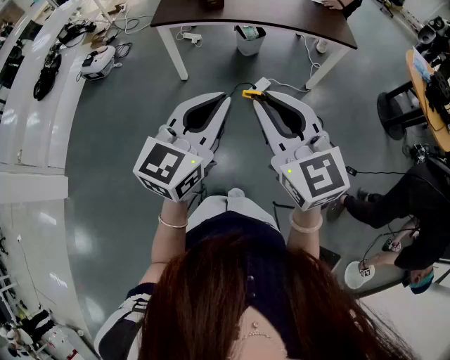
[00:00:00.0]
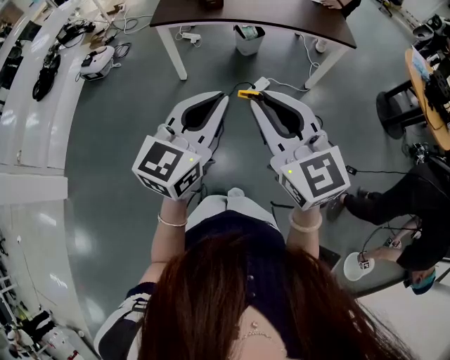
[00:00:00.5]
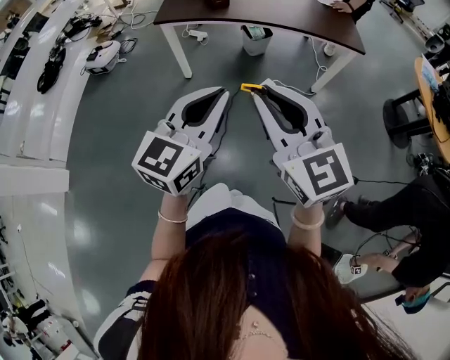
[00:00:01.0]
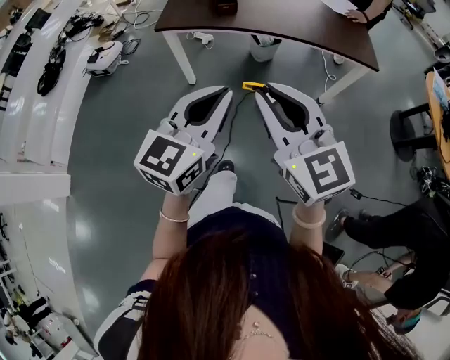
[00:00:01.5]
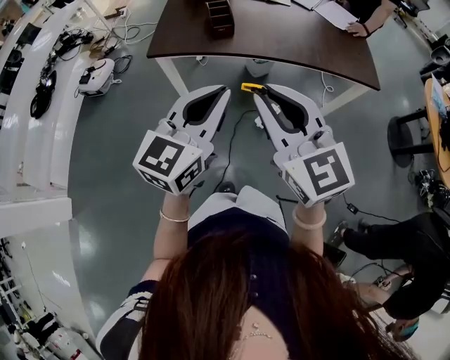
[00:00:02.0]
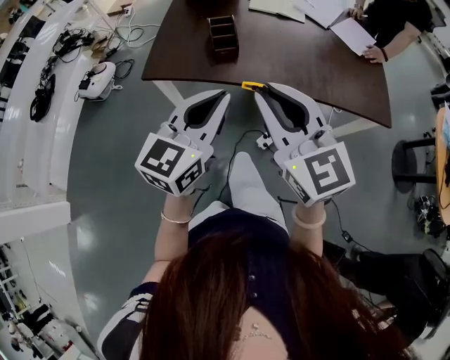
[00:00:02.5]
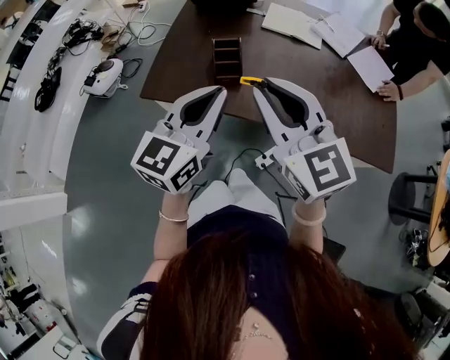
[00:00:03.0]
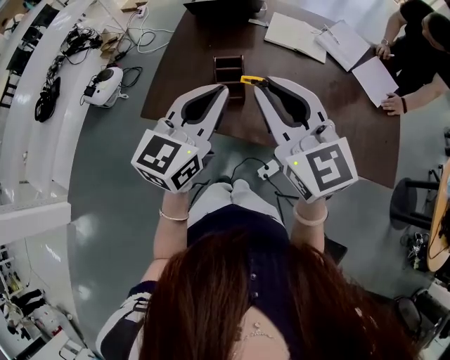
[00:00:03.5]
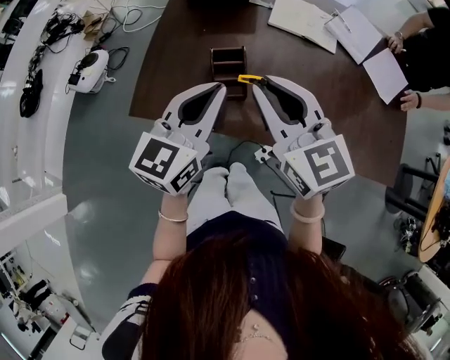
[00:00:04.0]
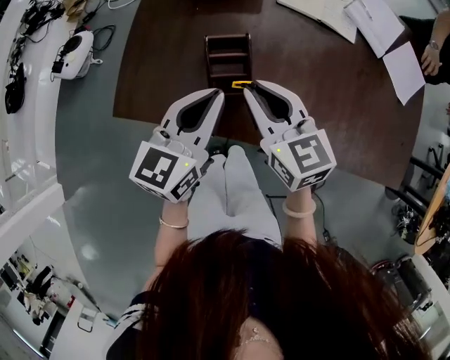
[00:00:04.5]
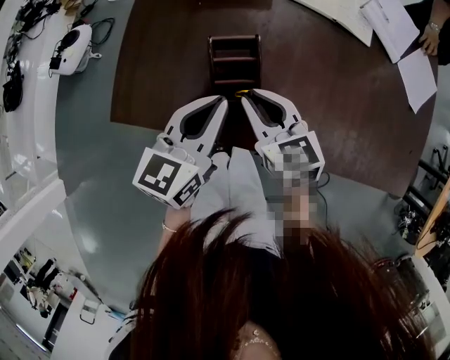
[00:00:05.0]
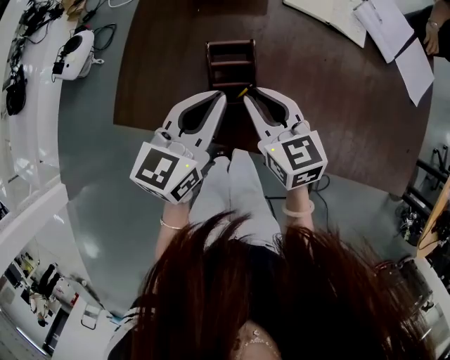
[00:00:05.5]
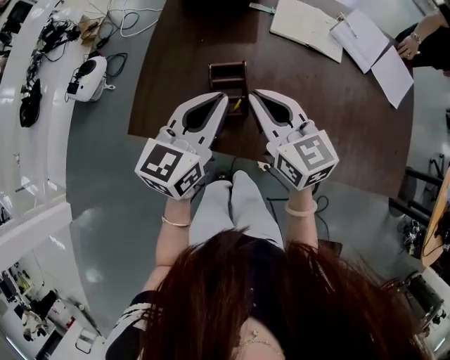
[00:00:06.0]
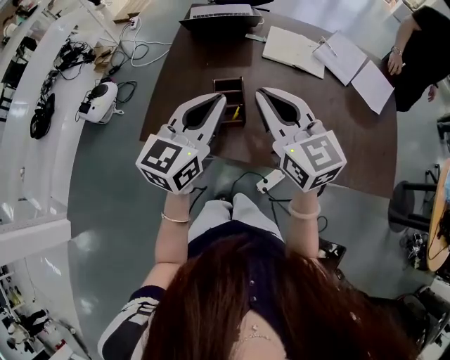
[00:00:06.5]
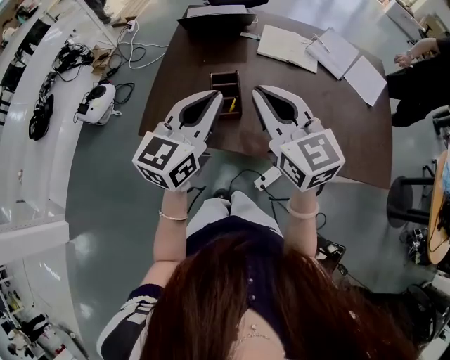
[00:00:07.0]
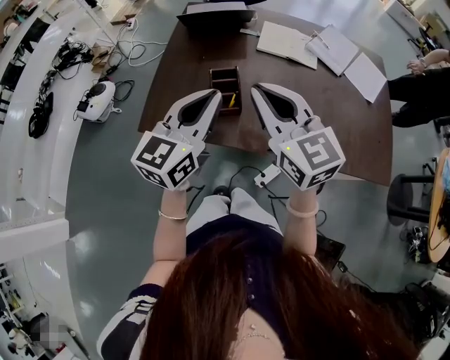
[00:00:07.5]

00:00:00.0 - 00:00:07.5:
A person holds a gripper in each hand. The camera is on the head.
00:00:00.0 - 00:00:02.0: The grippers both shift forward by some 30 cm.
00:00:02.0 - 00:00:04.0: Both grippers are carried forward, roughly 50 cm.
00:00:04.0 - 00:00:05.5: The right gripper heads downward, covering some 20 cm, and turns by roughly 20 degrees. The left gripper is displaced downward and forward by approximately 15 cm.
00:00:05.5 - 00:00:07.5: Both grippers move upward and backward, some 25 cm. The right gripper changes its angle by approximately 30 degrees.

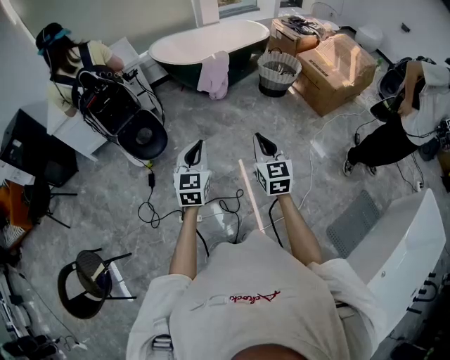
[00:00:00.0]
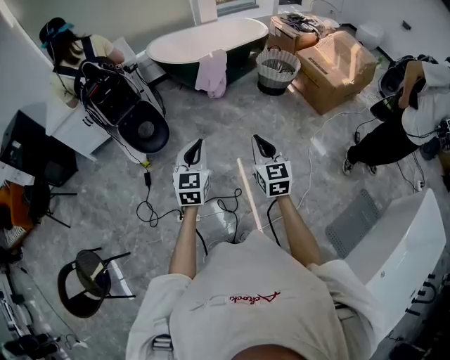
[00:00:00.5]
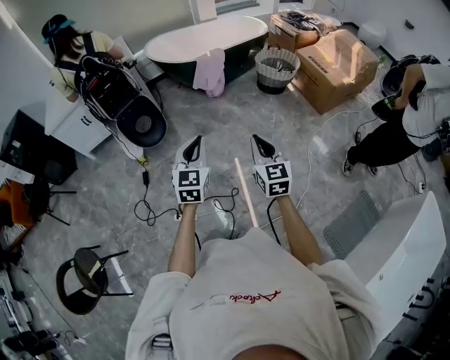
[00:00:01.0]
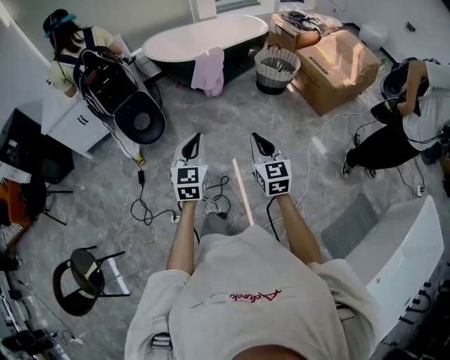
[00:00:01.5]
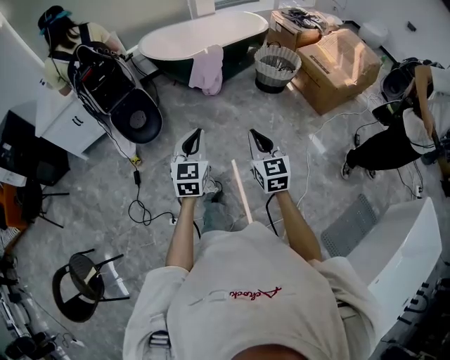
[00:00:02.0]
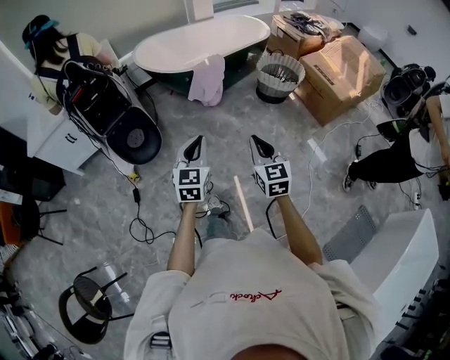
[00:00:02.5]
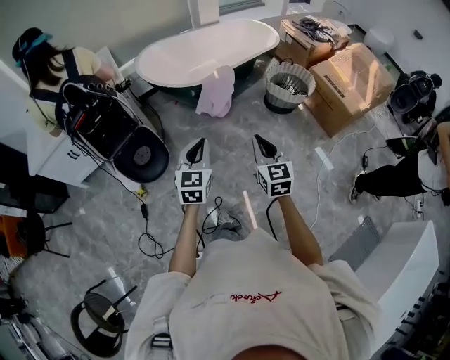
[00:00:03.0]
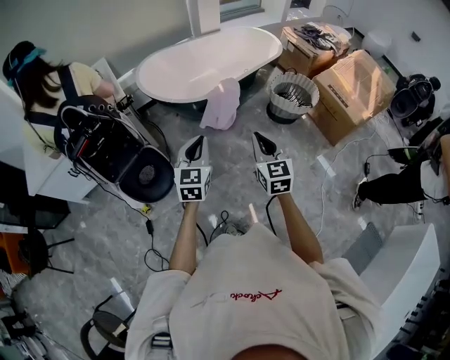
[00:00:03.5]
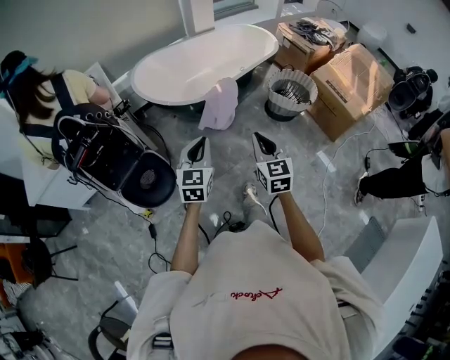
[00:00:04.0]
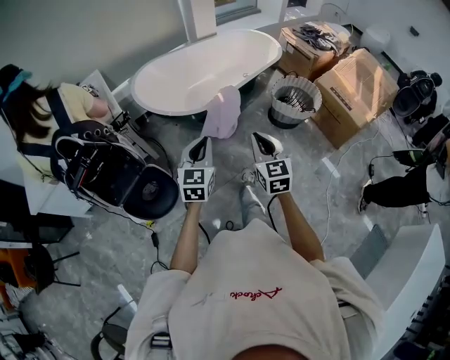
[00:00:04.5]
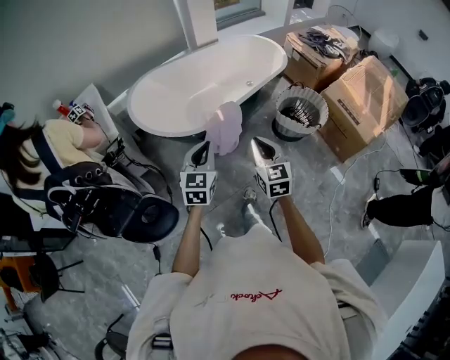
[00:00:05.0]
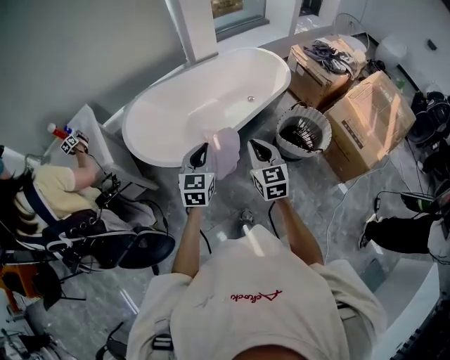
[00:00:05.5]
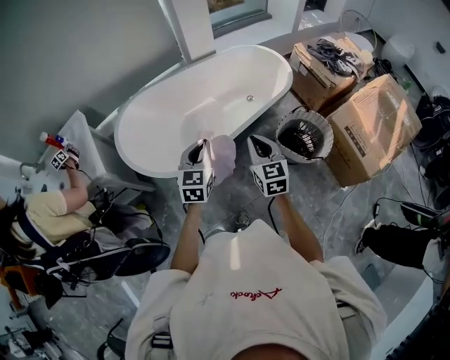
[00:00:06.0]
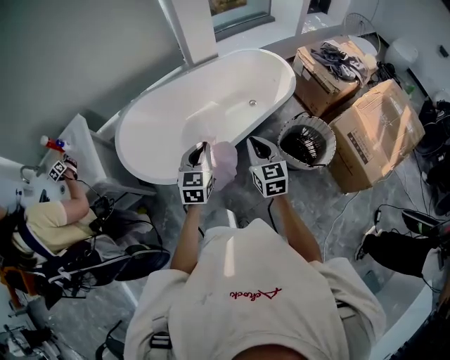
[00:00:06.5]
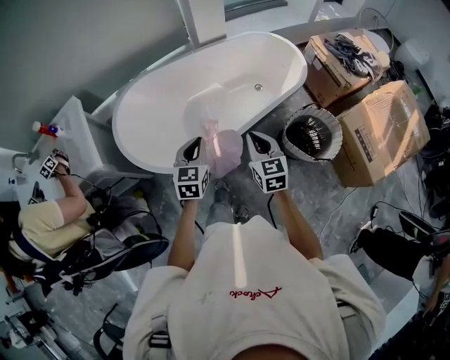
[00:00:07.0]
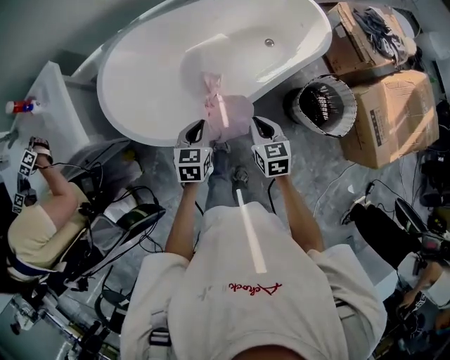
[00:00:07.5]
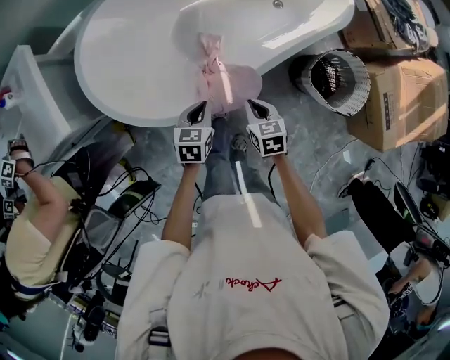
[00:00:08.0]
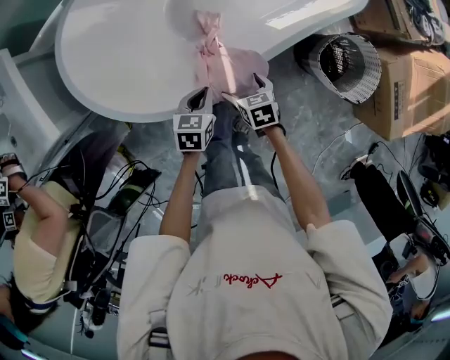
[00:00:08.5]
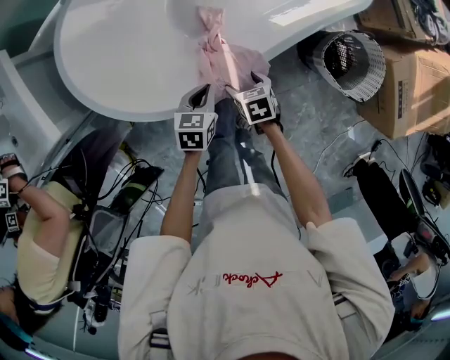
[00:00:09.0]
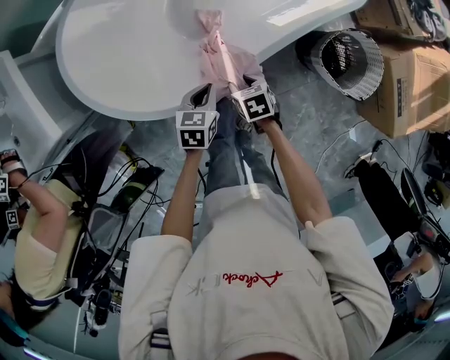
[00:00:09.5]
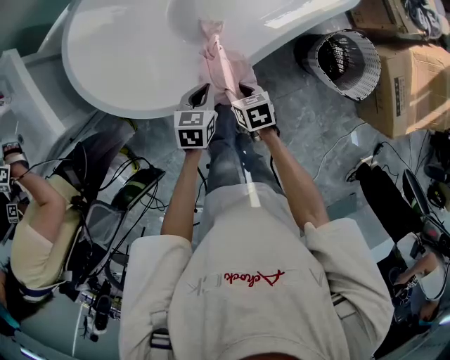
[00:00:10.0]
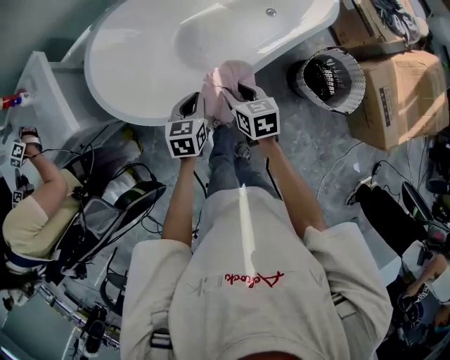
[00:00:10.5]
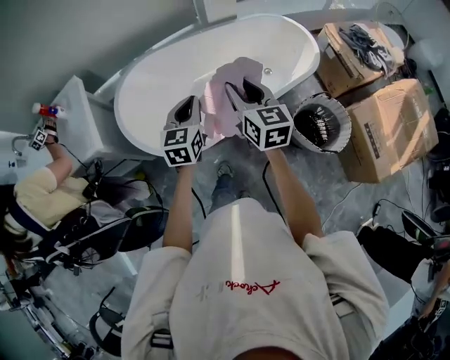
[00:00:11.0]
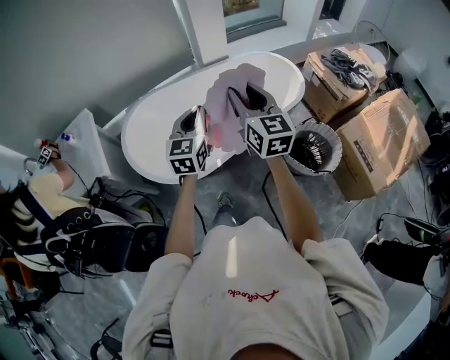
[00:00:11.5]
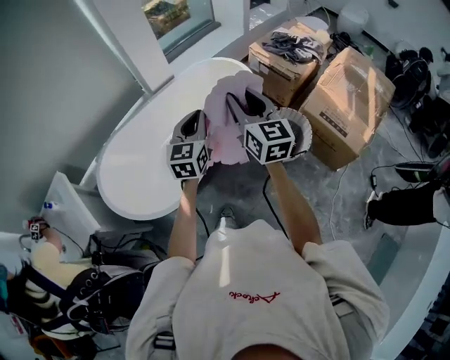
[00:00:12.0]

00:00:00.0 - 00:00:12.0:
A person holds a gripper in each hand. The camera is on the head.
00:00:00.0 - 00:00:02.0: The left gripper heads forward and to the right, covering roughly 15 cm; the right gripper goes some 10 cm forward.
00:00:02.0 - 00:00:04.0: The pair of grippers is taken forward, some 40 cm.
00:00:04.0 - 00:00:06.0: Both grippers are carried forward, some 50 cm.
00:00:06.0 - 00:00:08.0: The two grippers go some 30 cm downward. The left gripper swivels about 40 degrees, while the right gripper tips its fingers downward by approximately 30 degrees.
00:00:08.0 - 00:00:10.0: The right gripper moves downward, some 5 cm, and opens, then closes again.
00:00:10.0 - 00:00:12.0: Both grippers travel together upward, approximately 50 cm. The left gripper angles its fingers upward, by some 40 degrees; the right gripper tips its fingers upward by some 60 degrees.

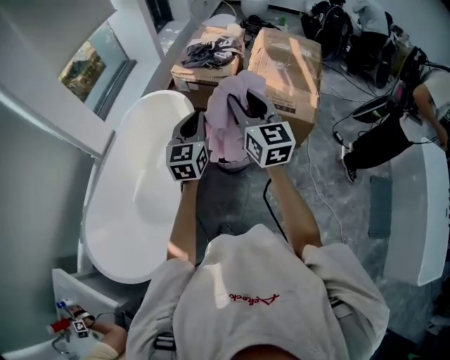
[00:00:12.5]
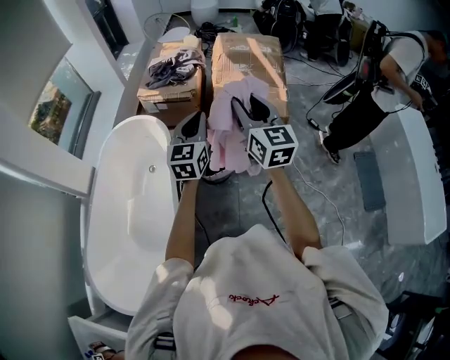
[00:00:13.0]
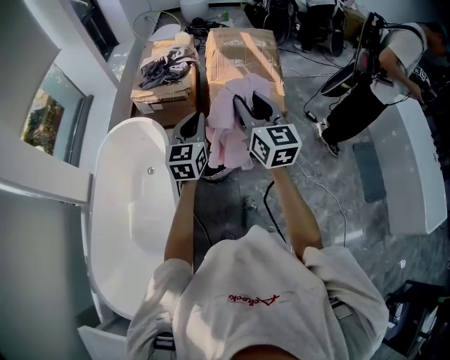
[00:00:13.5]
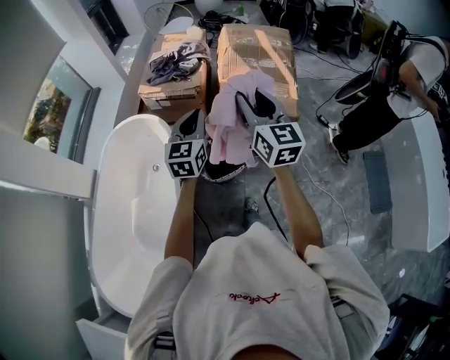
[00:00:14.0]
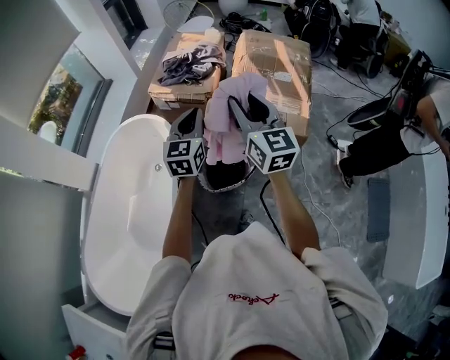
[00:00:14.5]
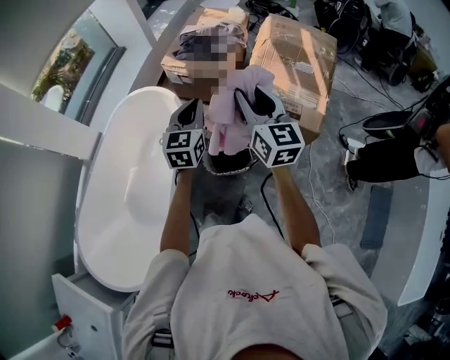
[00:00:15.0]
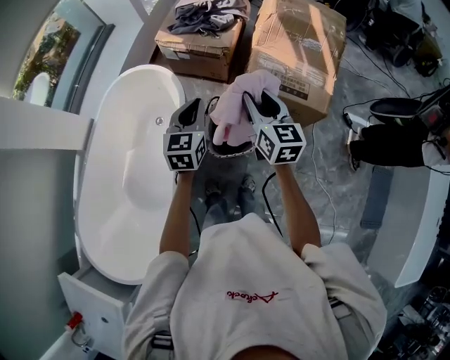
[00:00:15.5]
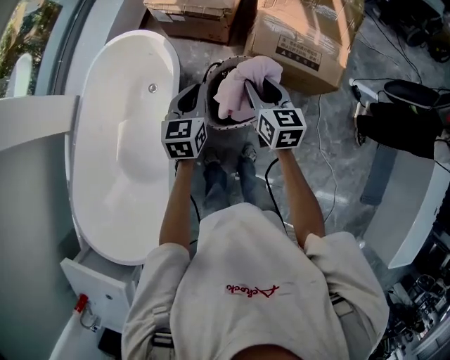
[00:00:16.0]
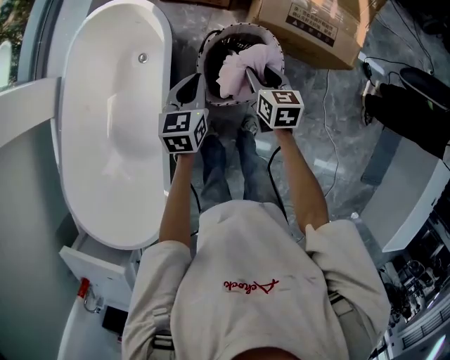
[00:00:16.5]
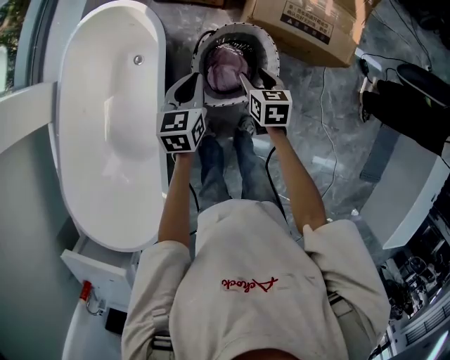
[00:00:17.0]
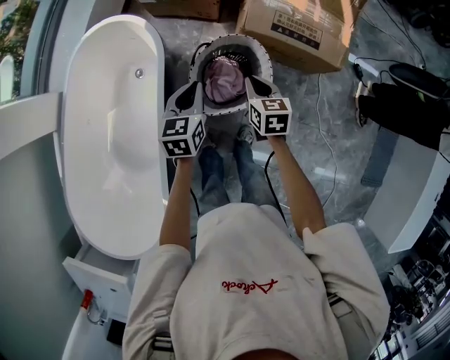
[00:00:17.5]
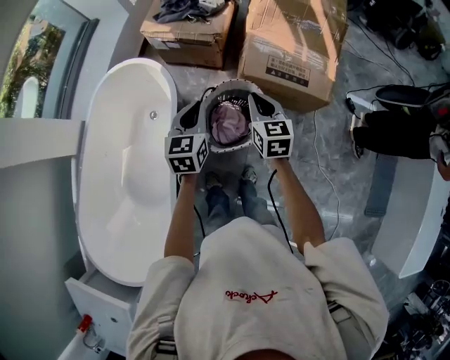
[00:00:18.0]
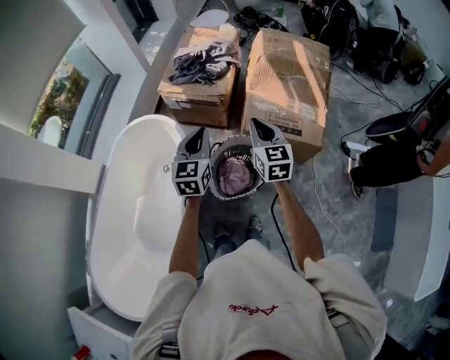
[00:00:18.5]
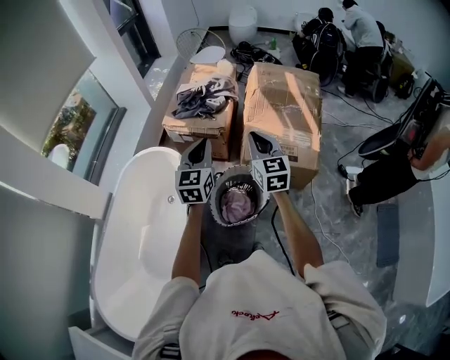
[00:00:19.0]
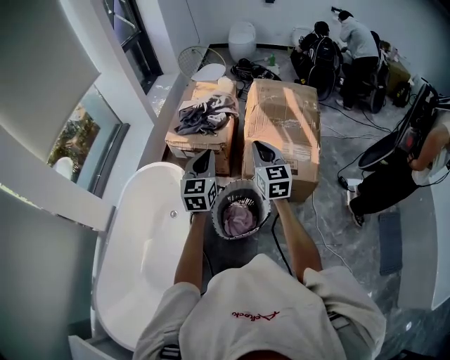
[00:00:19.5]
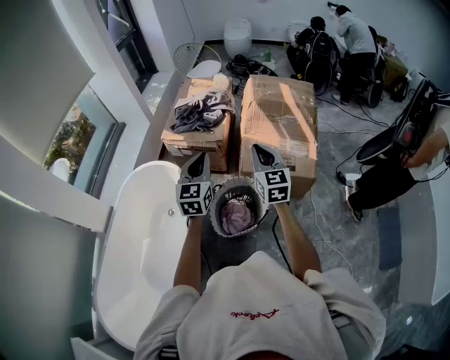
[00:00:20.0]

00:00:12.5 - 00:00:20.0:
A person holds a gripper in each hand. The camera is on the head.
00:00:12.5 - 00:00:14.5: The two grippers go some 20 cm forward.
00:00:14.5 - 00:00:16.5: Both grippers move downward, some 40 cm. The right gripper tips its fingers downward by approximately 40 degrees. The left gripper swivels approximately 30 degrees.
00:00:16.5 - 00:00:18.0: The grippers both shift upward by some 15 cm. The right gripper closes.
00:00:18.0 - 00:00:20.0: The two grippers go some 20 cm upward. The right gripper swivels approximately 20 degrees. Meanwhile the left gripper rotates roughly 20 degrees.
